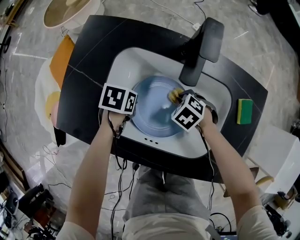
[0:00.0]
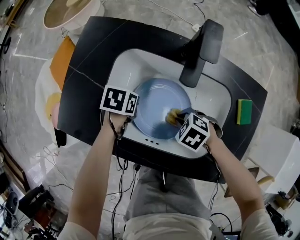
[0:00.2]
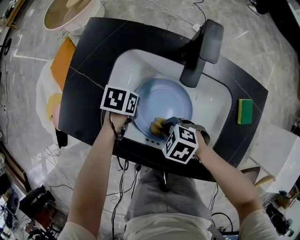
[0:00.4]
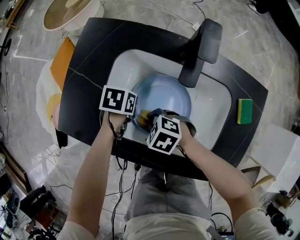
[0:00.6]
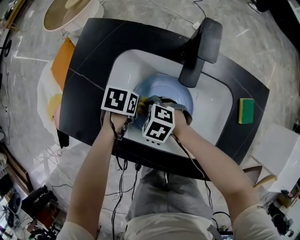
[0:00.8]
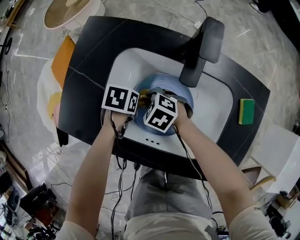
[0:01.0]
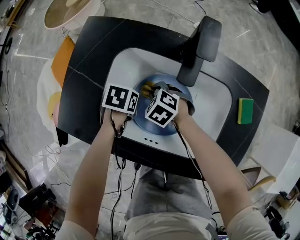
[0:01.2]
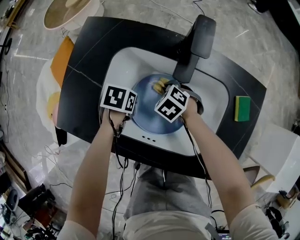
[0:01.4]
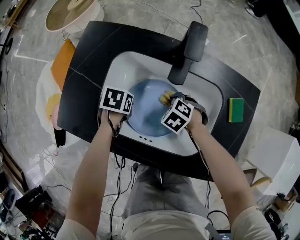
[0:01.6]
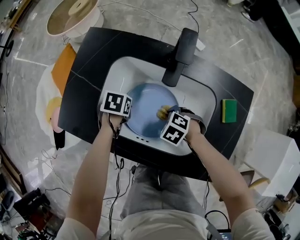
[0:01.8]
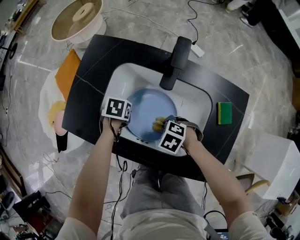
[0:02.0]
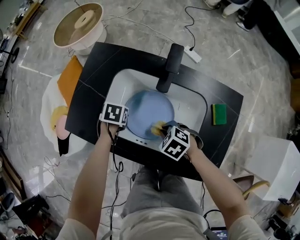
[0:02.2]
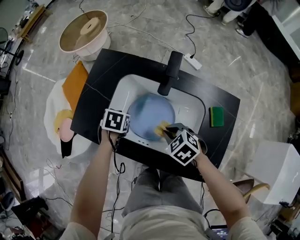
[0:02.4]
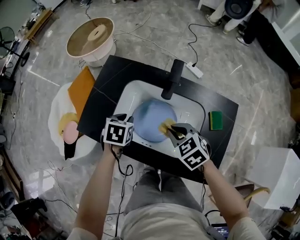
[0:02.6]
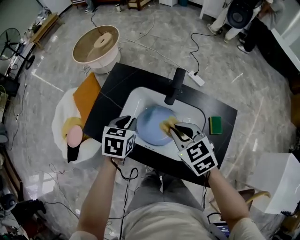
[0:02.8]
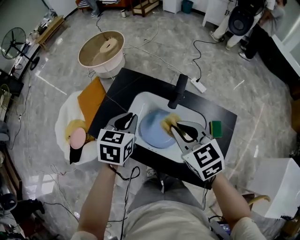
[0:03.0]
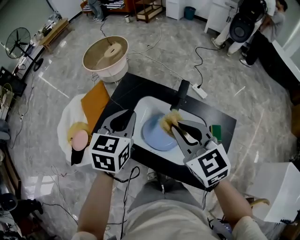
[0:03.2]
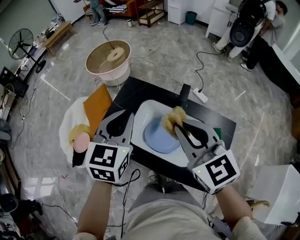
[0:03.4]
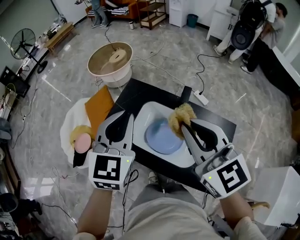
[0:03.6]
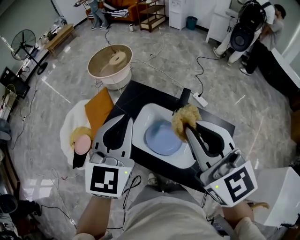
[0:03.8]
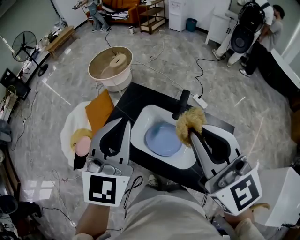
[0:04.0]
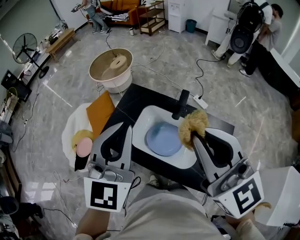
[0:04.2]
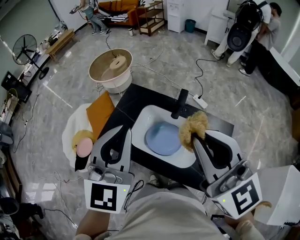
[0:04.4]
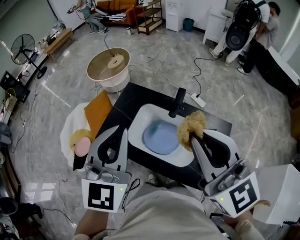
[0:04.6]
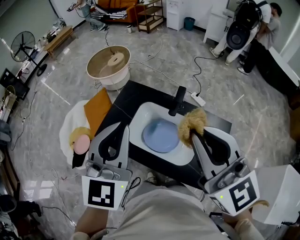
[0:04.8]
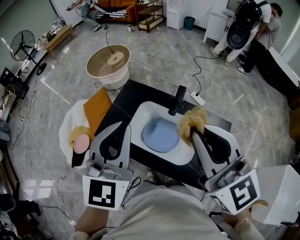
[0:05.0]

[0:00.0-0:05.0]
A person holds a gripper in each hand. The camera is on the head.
0:01.6 to 0:03.4: Both grippers travel together upward, some 50 cm. The left gripper tilts its fingers approximately 50 degrees upward; the right gripper angles its fingers upward, by roughly 60 degrees.
0:03.4 to 0:05.0: Both grippers travel together upward and backward, about 15 cm.

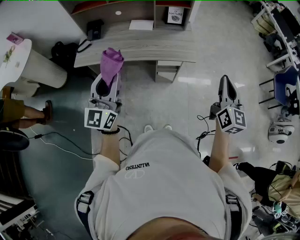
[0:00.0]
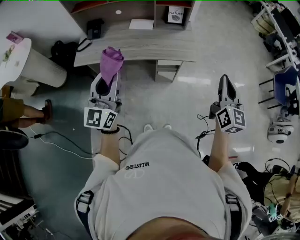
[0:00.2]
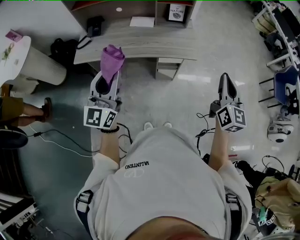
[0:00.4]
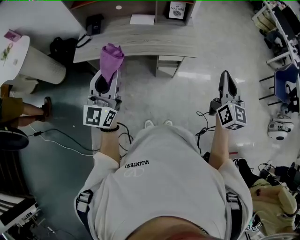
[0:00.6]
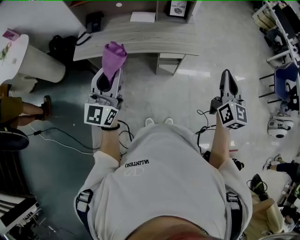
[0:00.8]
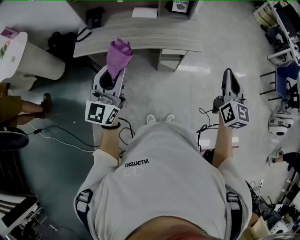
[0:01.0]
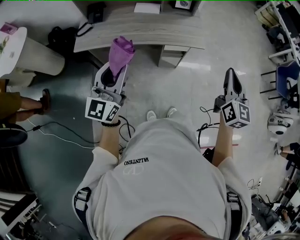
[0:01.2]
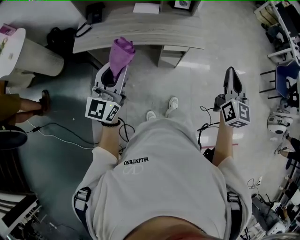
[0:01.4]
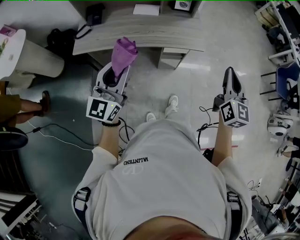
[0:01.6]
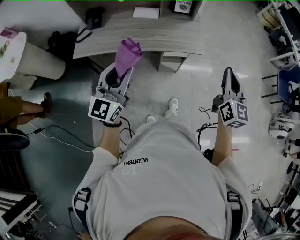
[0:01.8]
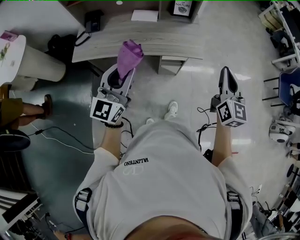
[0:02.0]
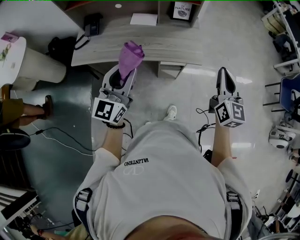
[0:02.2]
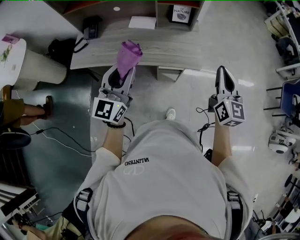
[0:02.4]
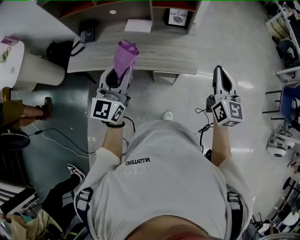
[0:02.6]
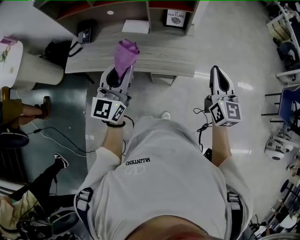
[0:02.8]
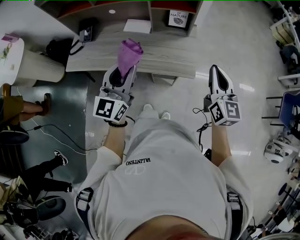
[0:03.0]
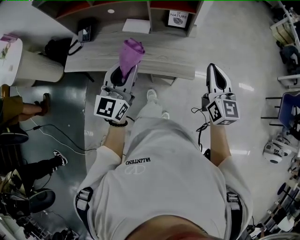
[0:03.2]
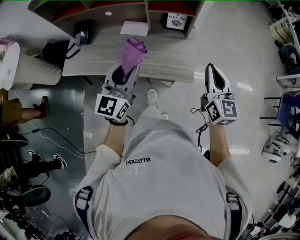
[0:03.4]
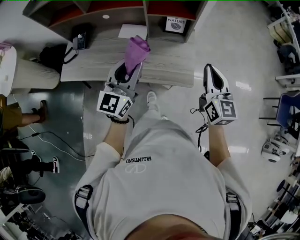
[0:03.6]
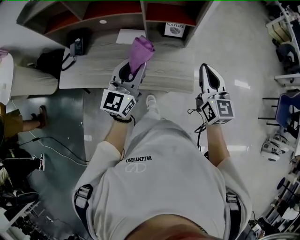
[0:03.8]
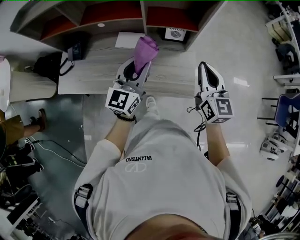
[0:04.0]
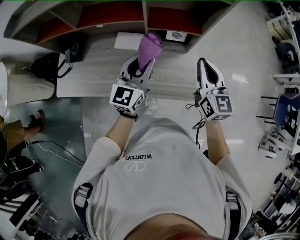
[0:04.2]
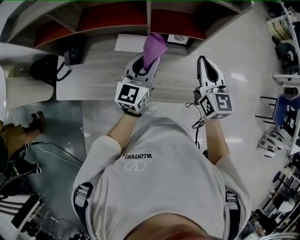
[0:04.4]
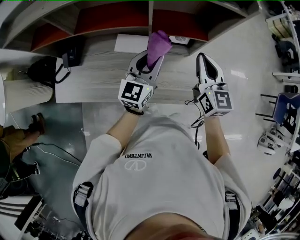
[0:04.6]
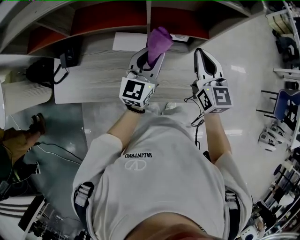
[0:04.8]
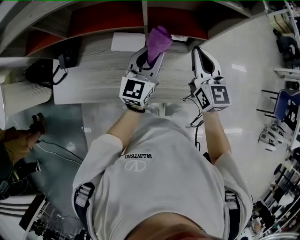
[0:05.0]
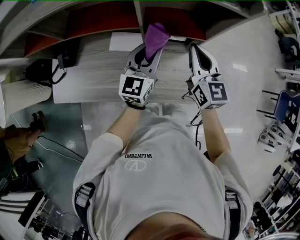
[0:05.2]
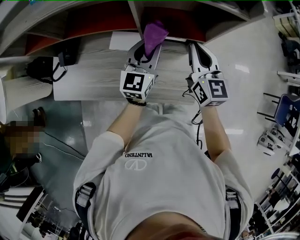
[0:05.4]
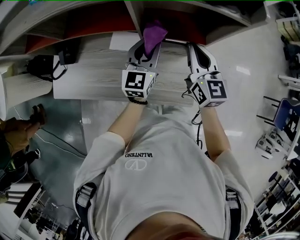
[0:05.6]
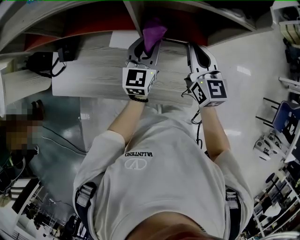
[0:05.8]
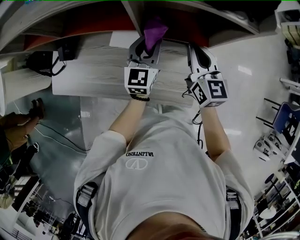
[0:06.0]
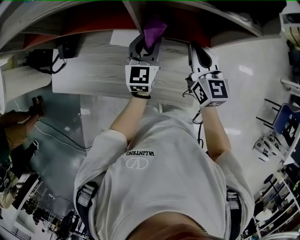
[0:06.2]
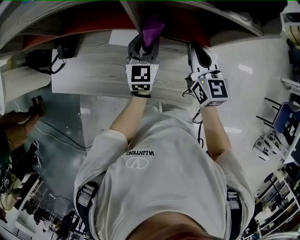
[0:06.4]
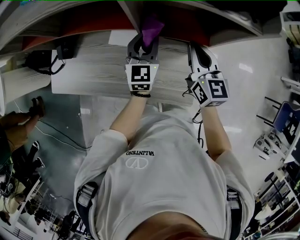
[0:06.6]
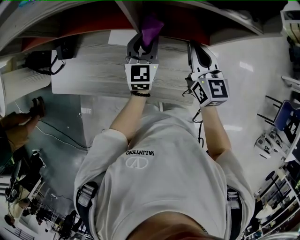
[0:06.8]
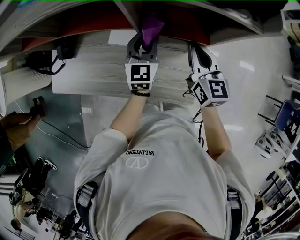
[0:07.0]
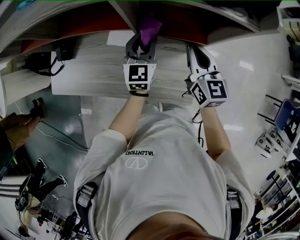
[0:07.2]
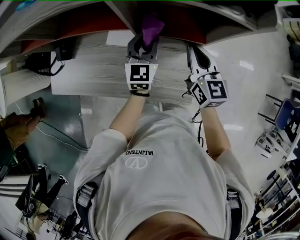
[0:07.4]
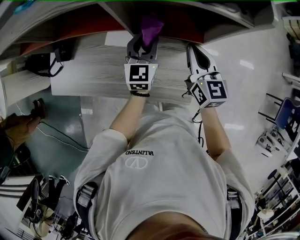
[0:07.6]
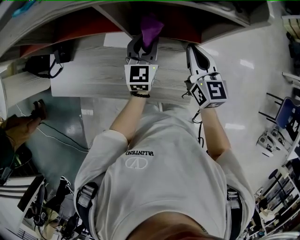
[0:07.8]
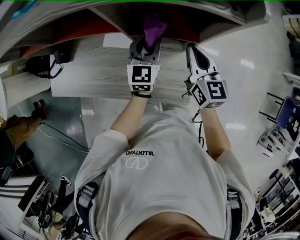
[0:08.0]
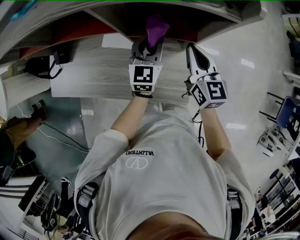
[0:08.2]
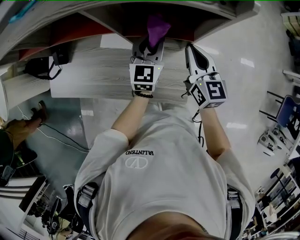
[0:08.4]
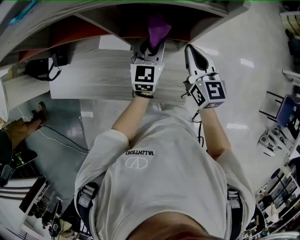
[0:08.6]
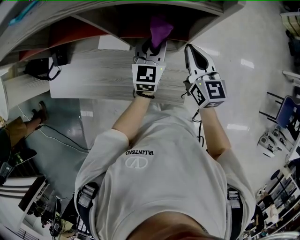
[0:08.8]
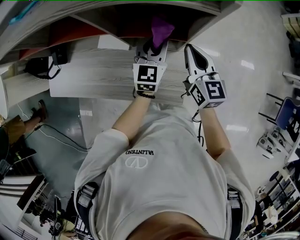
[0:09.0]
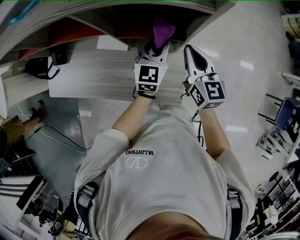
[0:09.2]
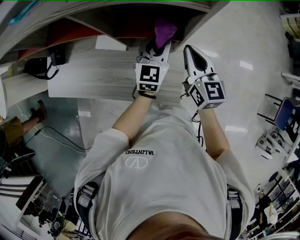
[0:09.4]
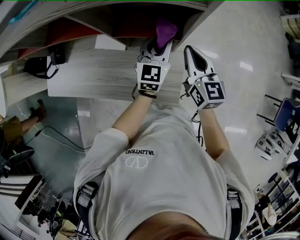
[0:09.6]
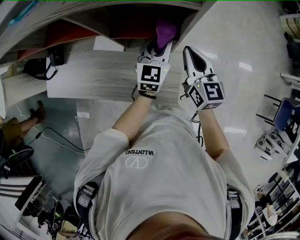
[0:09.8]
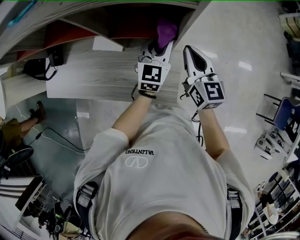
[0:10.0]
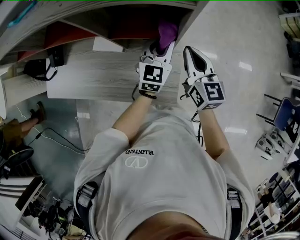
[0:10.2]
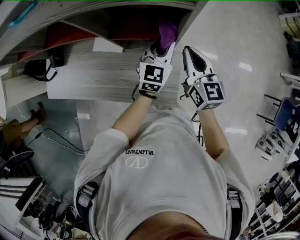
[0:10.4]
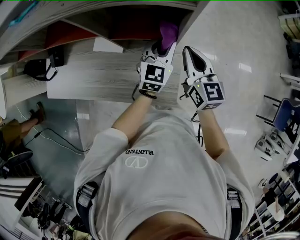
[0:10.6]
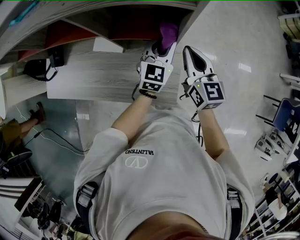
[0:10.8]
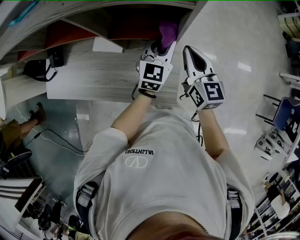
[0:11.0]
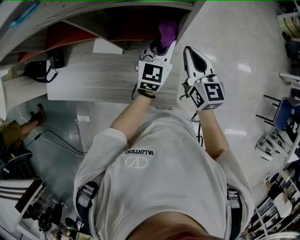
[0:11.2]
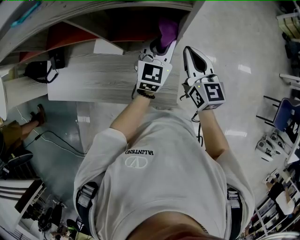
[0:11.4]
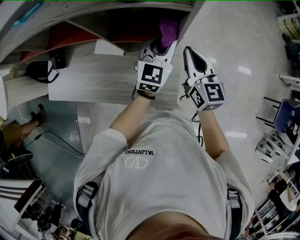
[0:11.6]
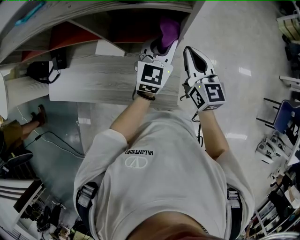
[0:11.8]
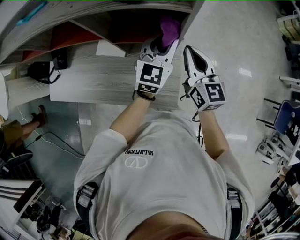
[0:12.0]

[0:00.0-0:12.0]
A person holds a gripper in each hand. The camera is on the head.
0:00.0 to 0:01.6: The right gripper travels to the left by roughly 5 cm.
0:01.6 to 0:03.0: The left gripper is displaced forward and to the right by about 25 cm. Meanwhile the right gripper heads forward, covering approximately 25 cm.
0:03.0 to 0:04.4: The right gripper is displaced forward and to the left by roughly 30 cm. The left gripper travels forward by about 30 cm.
0:04.4 to 0:06.0: The left gripper heads forward and downward, covering approximately 15 cm, while the right gripper heads forward, covering about 10 cm.
0:06.0 to 0:07.6: The grippers stay close to where they were, moving slightly.
0:07.6 to 0:09.0: The right gripper moves to the right, some 5 cm, while the left gripper shifts about 10 cm to the right.
0:09.0 to 0:10.4: The left gripper travels to the right by approximately 5 cm.
0:10.4 to 0:12.0: The left gripper travels upward by roughly 10 cm.

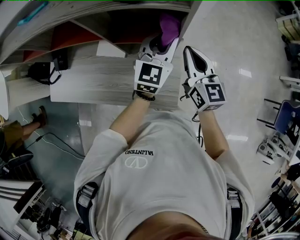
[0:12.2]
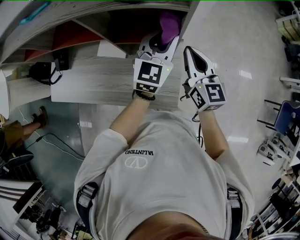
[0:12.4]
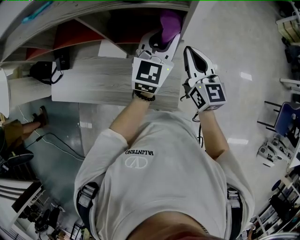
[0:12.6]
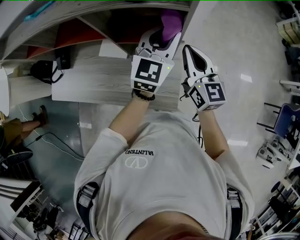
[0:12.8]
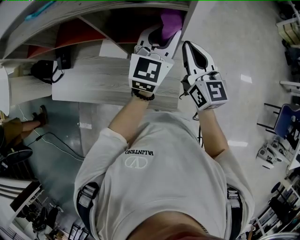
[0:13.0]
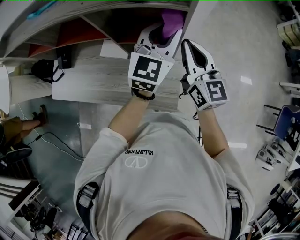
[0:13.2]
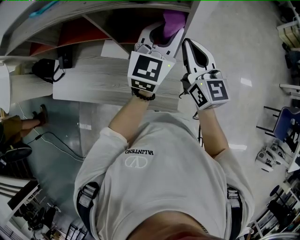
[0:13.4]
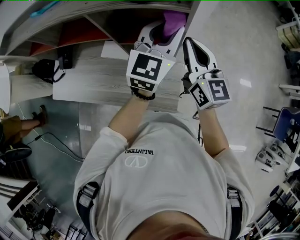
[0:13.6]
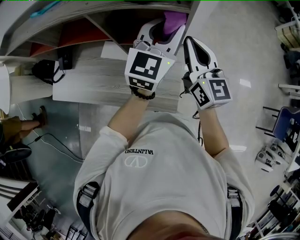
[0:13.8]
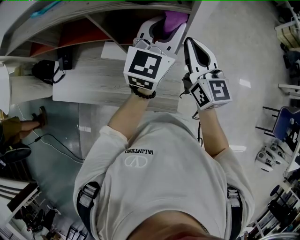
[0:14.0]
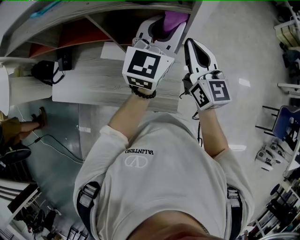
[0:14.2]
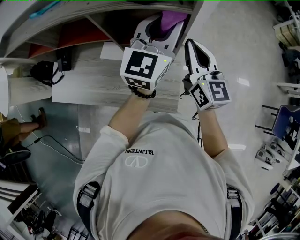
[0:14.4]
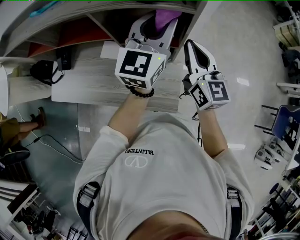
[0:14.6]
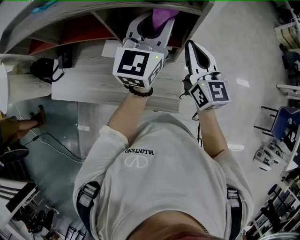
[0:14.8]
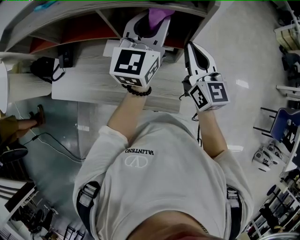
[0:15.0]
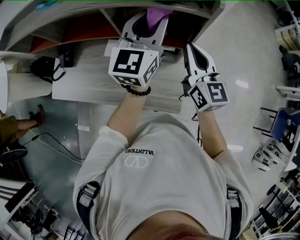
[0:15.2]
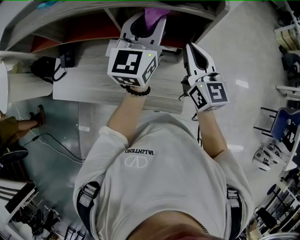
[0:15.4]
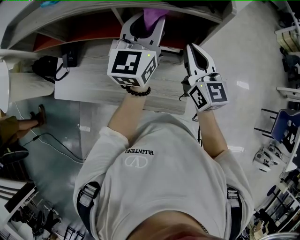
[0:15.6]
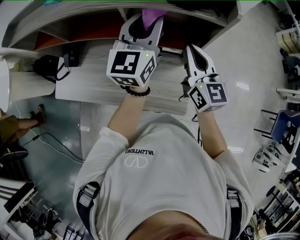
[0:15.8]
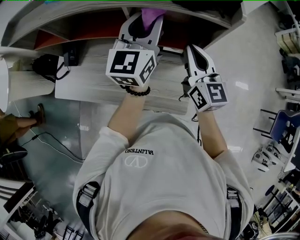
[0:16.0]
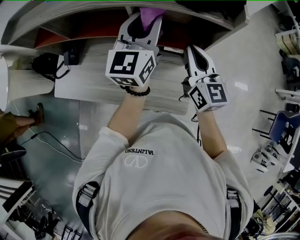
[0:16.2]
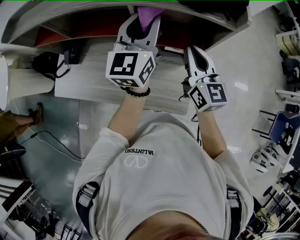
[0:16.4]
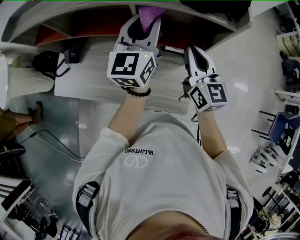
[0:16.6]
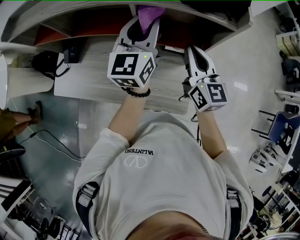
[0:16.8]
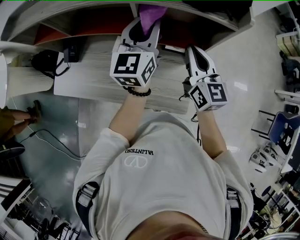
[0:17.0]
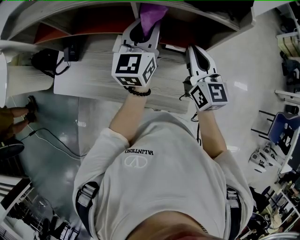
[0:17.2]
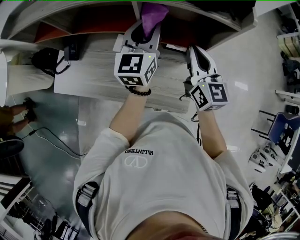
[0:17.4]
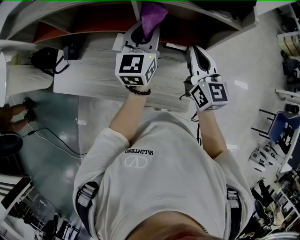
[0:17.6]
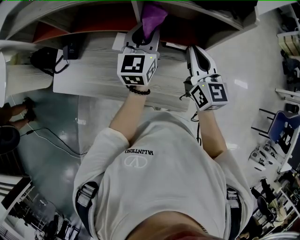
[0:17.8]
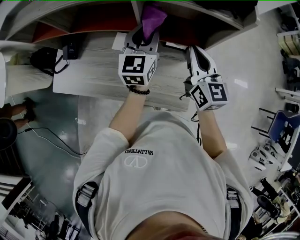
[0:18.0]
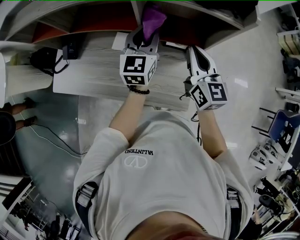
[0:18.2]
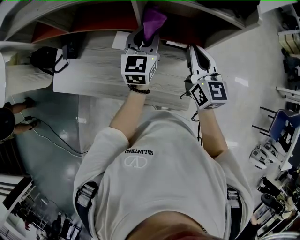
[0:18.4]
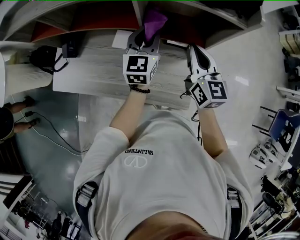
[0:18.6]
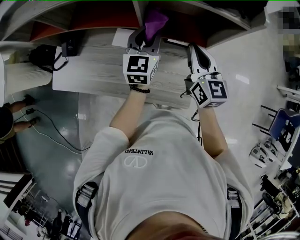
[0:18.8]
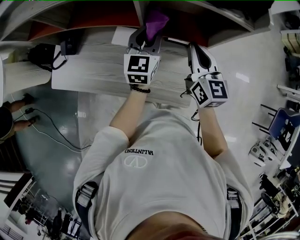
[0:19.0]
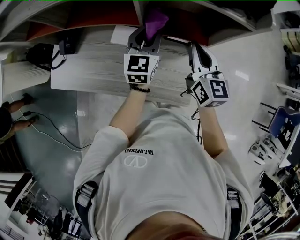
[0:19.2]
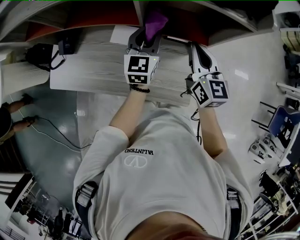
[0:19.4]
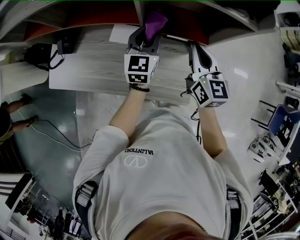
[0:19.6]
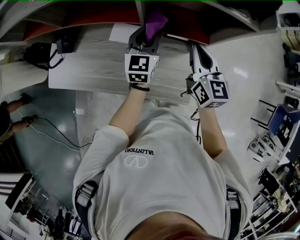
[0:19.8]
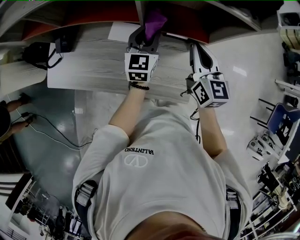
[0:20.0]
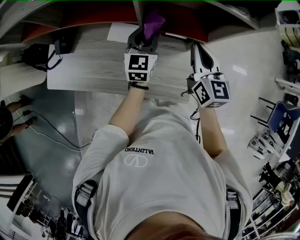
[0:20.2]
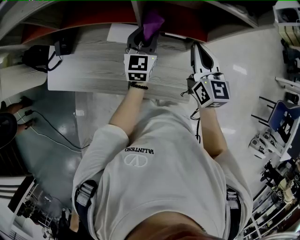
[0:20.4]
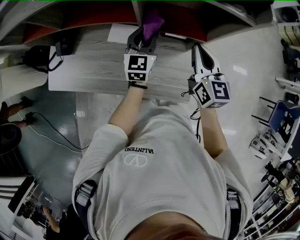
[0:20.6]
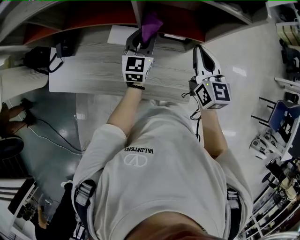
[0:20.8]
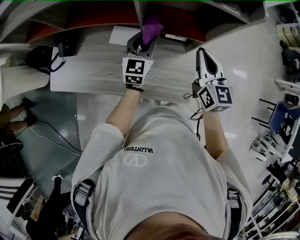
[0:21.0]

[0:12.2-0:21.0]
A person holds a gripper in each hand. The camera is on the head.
0:12.2 to 0:13.6: Both grippers travel together upward, approximately 10 cm.
0:13.6 to 0:15.2: The left gripper moves to the left, some 10 cm.
0:15.2 to 0:16.6: The grippers both shift to the left by some 10 cm.
0:16.6 to 0:18.0: The left gripper moves downward, approximately 10 cm.
0:18.0 to 0:19.6: The left gripper goes about 10 cm downward.
0:19.6 to 0:21.0: The grippers stay close to where they were, moving slightly.
